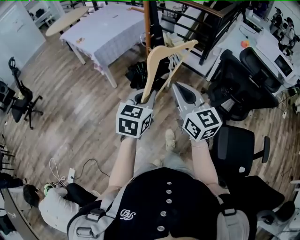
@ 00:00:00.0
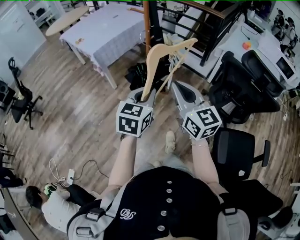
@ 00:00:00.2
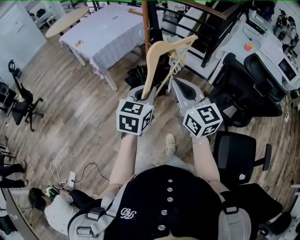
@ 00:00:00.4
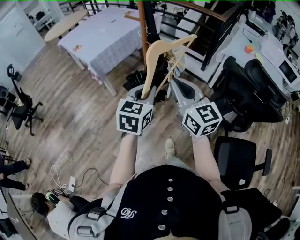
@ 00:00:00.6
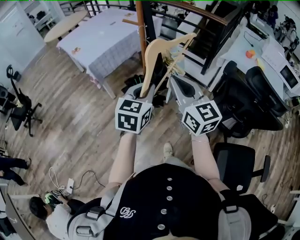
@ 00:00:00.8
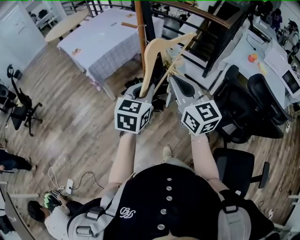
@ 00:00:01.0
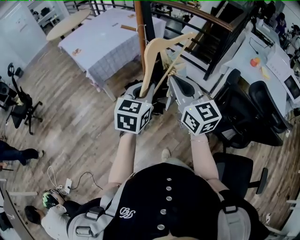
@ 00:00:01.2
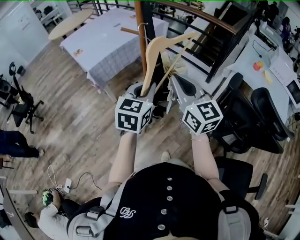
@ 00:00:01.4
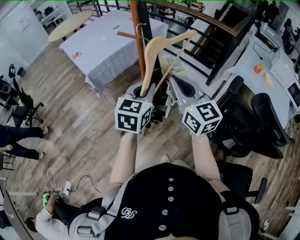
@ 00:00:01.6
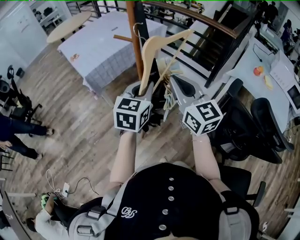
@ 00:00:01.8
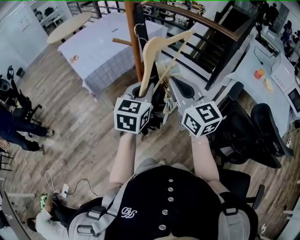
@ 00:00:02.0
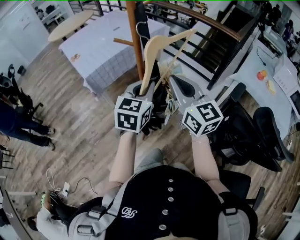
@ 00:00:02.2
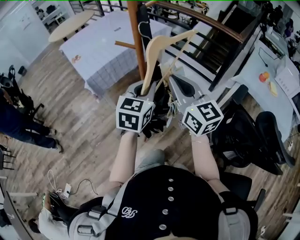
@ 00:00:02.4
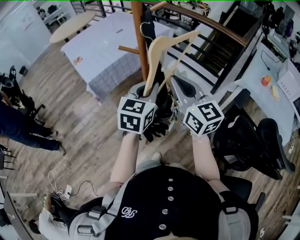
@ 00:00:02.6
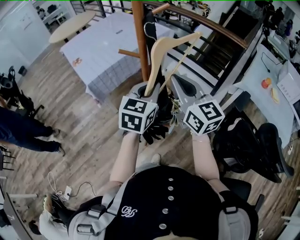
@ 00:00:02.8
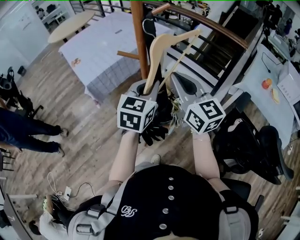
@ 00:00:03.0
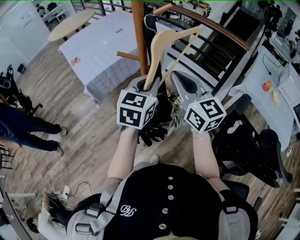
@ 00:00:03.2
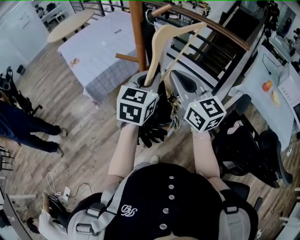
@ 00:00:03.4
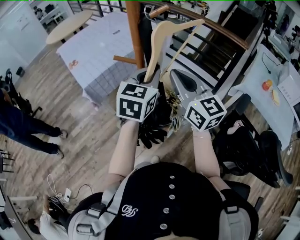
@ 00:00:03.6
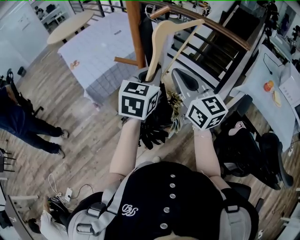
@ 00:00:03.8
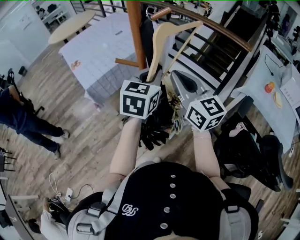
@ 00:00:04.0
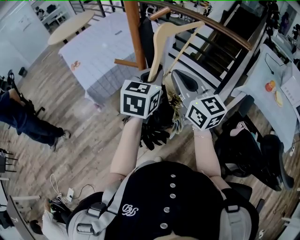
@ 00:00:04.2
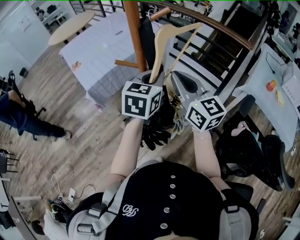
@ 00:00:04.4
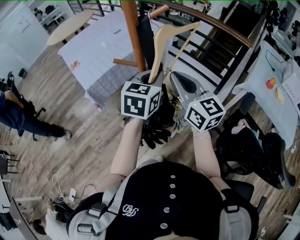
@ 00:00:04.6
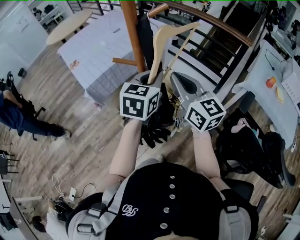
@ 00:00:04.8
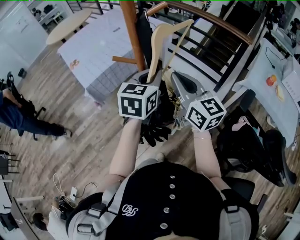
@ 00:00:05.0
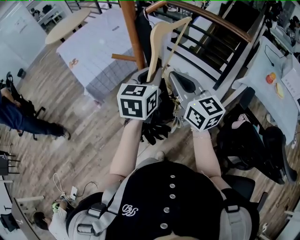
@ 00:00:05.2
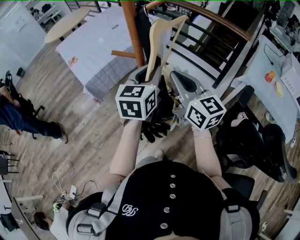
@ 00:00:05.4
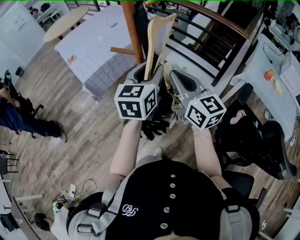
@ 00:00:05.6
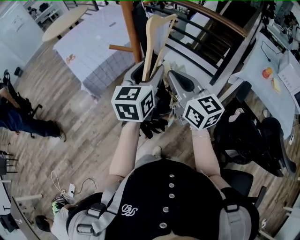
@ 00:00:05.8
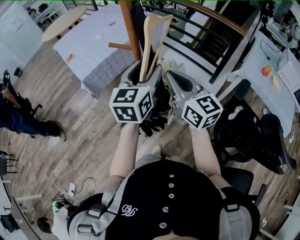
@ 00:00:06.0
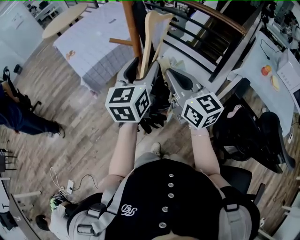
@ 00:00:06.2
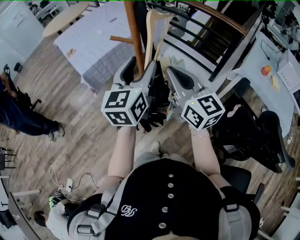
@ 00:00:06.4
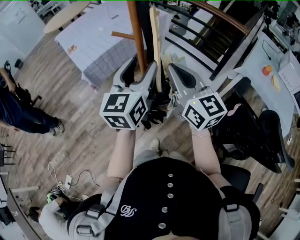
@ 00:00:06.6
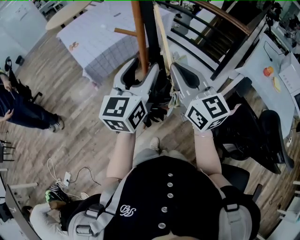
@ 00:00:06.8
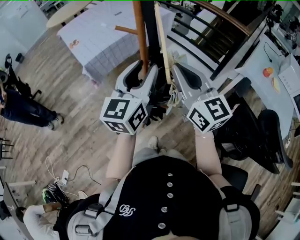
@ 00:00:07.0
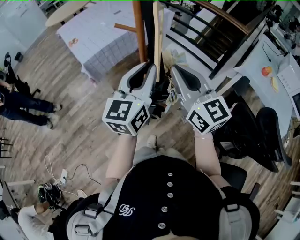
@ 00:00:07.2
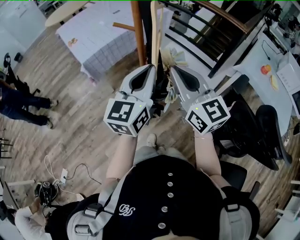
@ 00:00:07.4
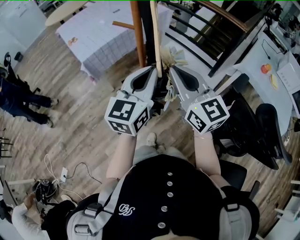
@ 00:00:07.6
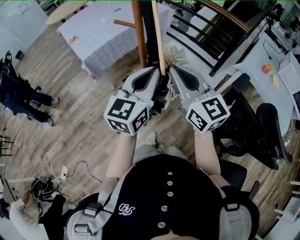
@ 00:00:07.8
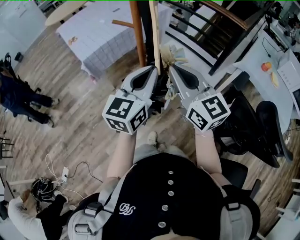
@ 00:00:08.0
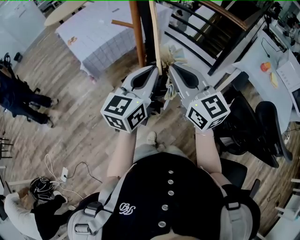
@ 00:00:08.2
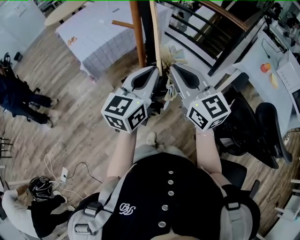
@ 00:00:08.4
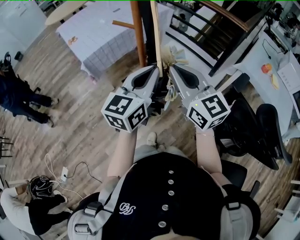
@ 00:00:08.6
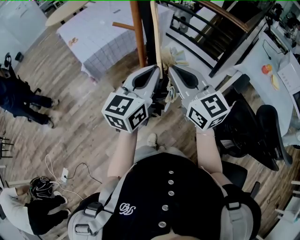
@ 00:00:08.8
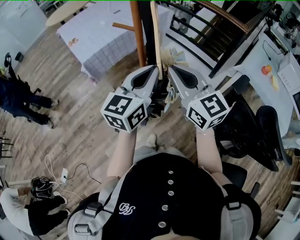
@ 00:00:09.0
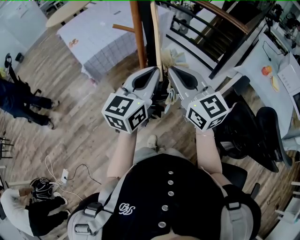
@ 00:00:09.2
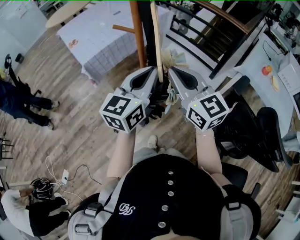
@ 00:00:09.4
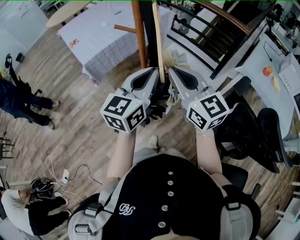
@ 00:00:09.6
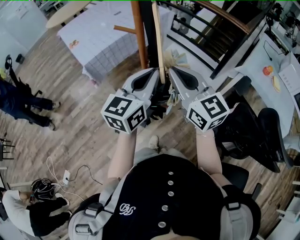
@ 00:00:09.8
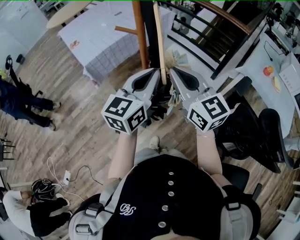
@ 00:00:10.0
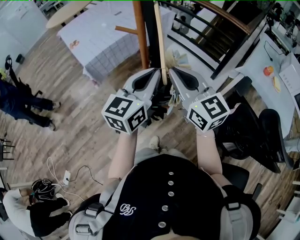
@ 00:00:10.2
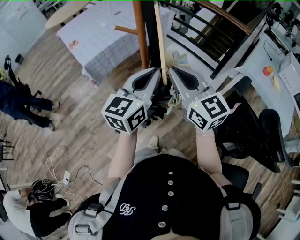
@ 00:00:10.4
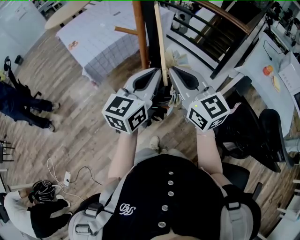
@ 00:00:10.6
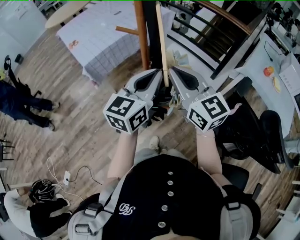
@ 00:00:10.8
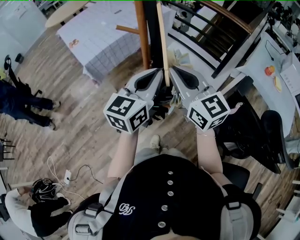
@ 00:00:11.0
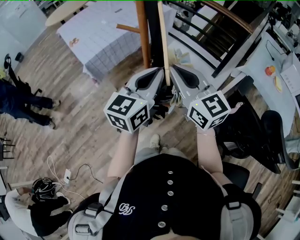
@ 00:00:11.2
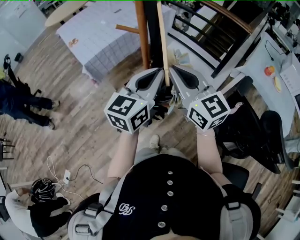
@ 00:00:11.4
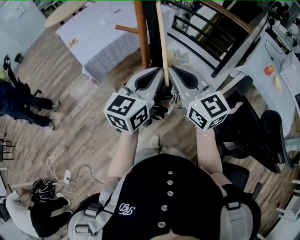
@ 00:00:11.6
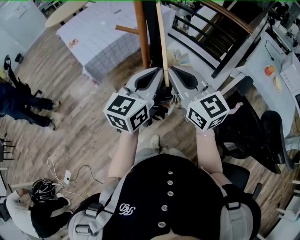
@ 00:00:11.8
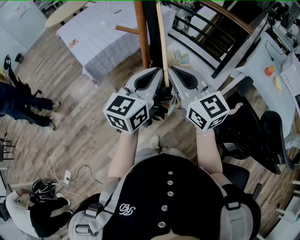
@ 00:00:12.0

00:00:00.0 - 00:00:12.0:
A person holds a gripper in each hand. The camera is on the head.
00:00:00.0 - 00:00:01.6: Both grippers move forward, about 30 cm.
00:00:01.6 - 00:00:03.0: The grippers both shift forward by some 15 cm.
00:00:03.0 - 00:00:04.4: Both grippers travel together forward, roughly 5 cm.
00:00:04.4 - 00:00:06.0: The two grippers go about 5 cm backward. The left gripper opens its fingers.
00:00:06.0 - 00:00:07.6: Both grippers move backward, some 10 cm. The left gripper closes its fingers.
00:00:07.6 - 00:00:10.4: The grippers make only small movements.
00:00:10.4 - 00:00:12.0: Both grippers stay about where they are.

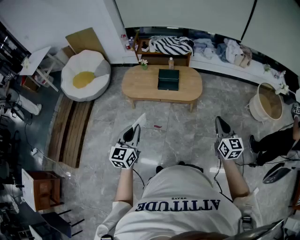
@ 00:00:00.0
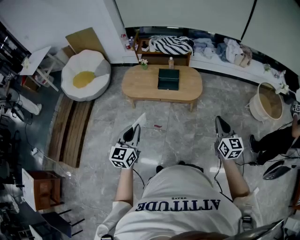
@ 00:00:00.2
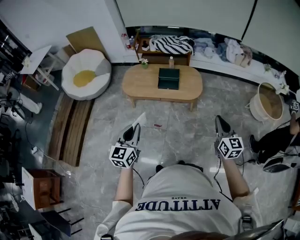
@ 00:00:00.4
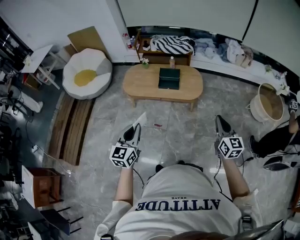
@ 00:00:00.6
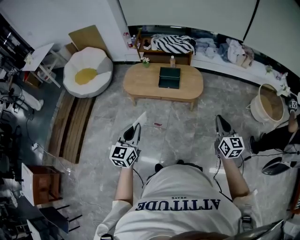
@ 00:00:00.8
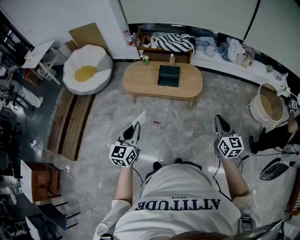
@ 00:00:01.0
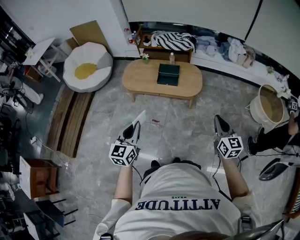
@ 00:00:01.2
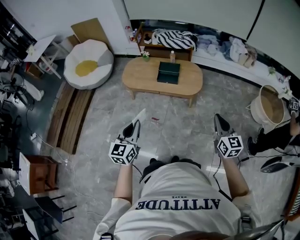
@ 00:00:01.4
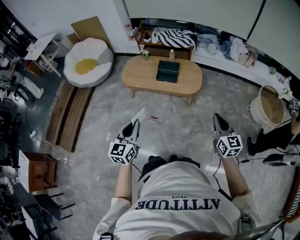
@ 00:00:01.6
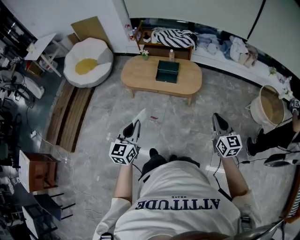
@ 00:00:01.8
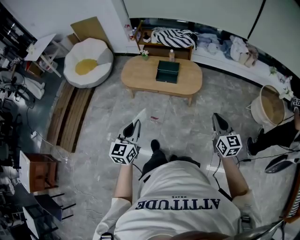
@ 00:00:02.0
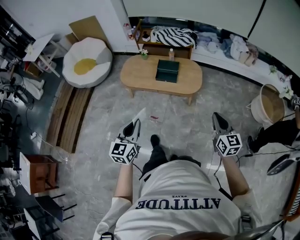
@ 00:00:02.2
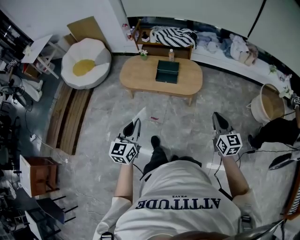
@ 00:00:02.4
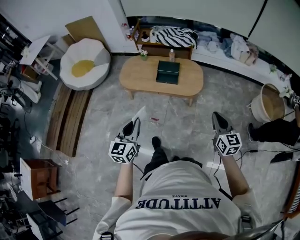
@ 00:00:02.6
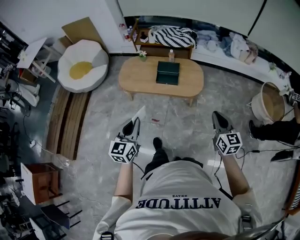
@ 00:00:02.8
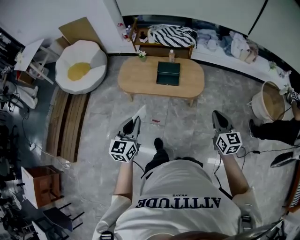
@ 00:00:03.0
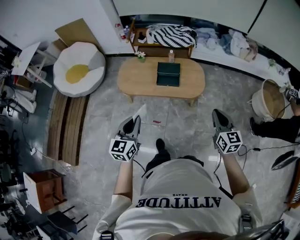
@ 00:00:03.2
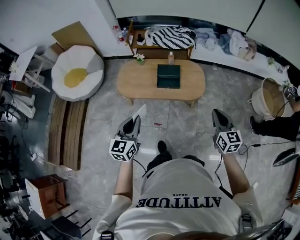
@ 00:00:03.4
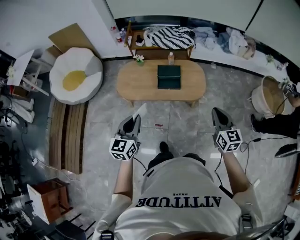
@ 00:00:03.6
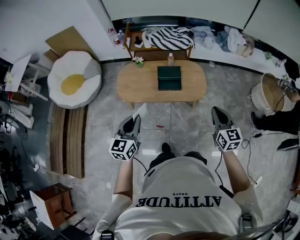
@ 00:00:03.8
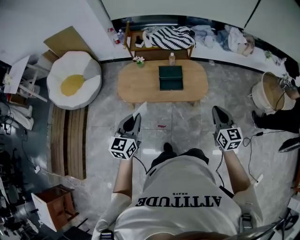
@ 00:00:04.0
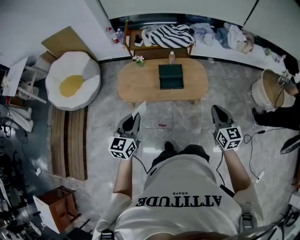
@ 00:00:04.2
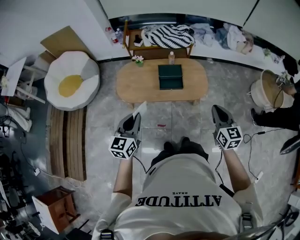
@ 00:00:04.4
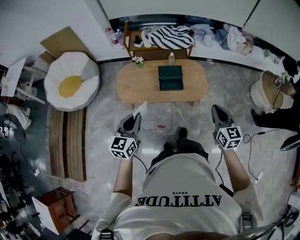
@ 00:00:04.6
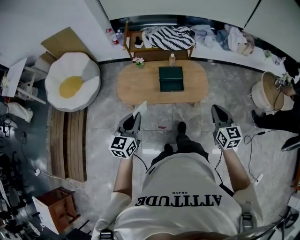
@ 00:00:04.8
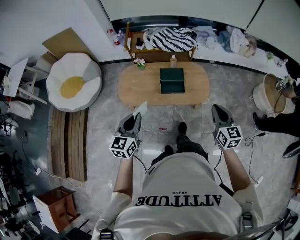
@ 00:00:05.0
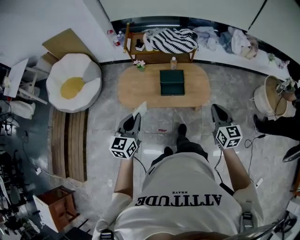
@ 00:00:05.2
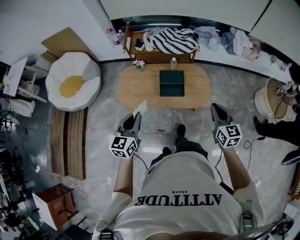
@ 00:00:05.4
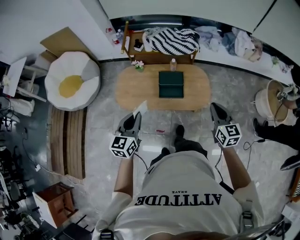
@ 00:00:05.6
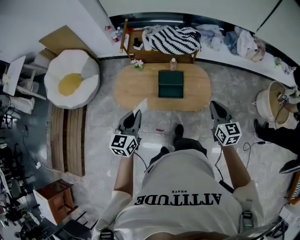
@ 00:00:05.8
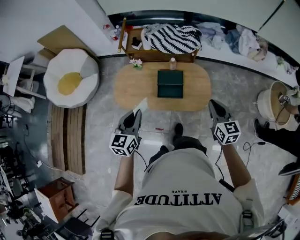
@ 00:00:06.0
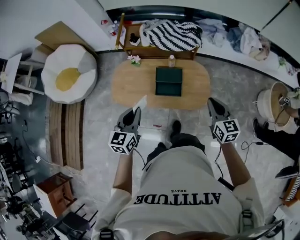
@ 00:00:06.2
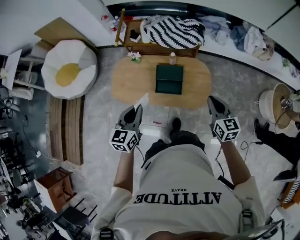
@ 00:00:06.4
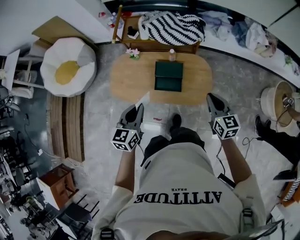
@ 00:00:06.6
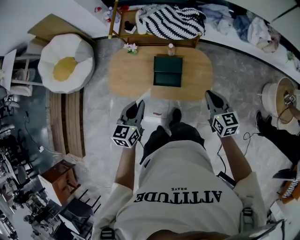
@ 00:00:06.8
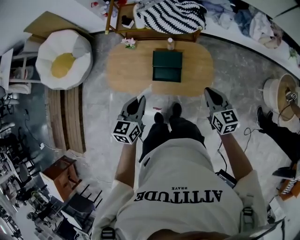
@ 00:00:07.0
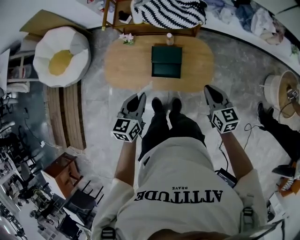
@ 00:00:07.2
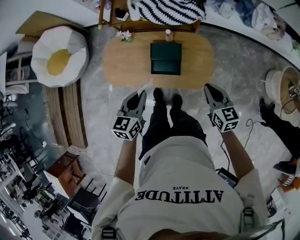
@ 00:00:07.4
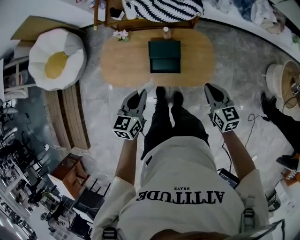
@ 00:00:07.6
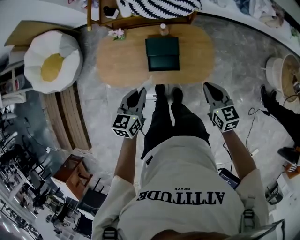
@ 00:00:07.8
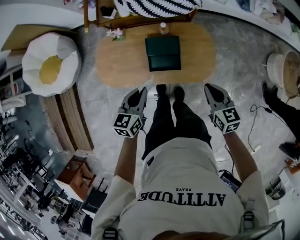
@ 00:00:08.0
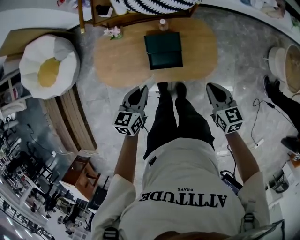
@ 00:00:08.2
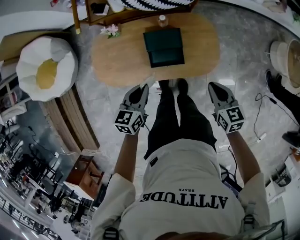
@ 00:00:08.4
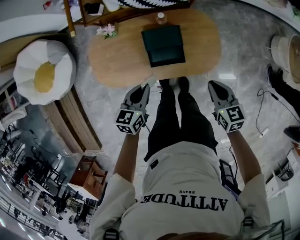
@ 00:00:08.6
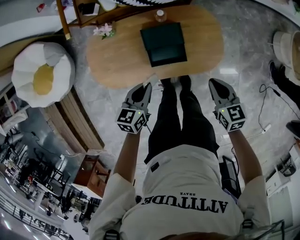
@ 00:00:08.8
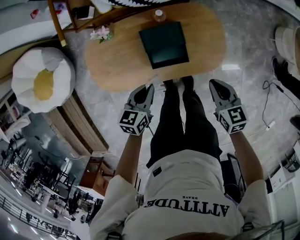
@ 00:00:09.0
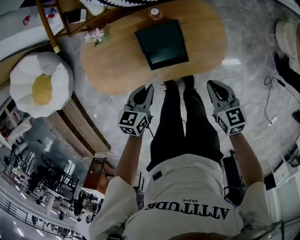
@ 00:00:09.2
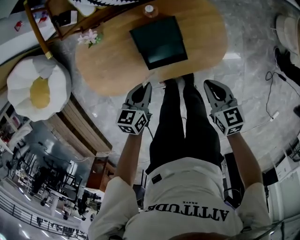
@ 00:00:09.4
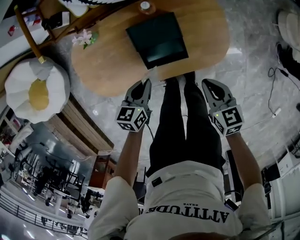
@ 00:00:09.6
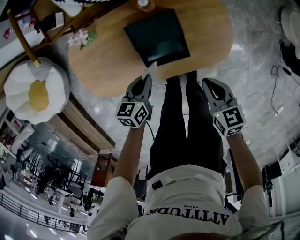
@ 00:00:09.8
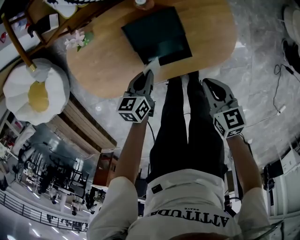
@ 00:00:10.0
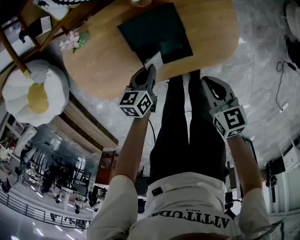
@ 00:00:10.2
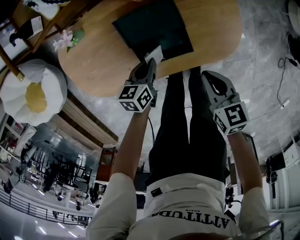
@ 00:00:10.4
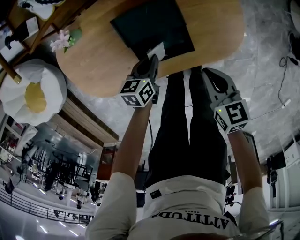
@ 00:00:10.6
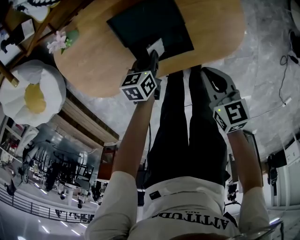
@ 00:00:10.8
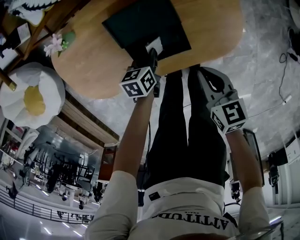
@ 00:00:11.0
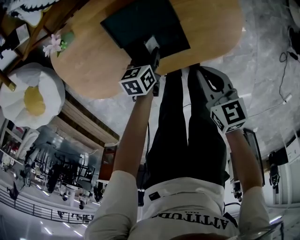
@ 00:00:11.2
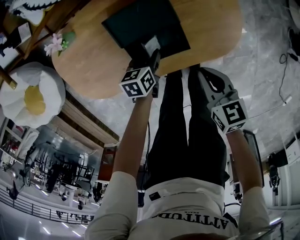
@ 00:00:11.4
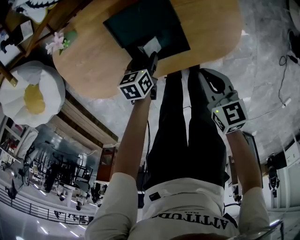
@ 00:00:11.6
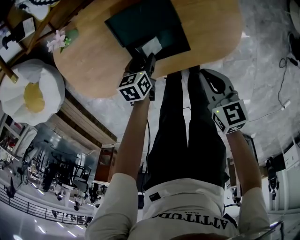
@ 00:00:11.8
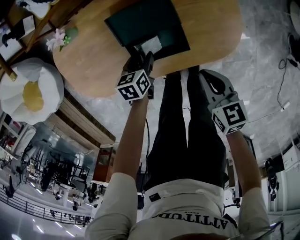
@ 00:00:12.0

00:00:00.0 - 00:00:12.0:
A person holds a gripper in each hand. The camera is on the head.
00:00:00.0 - 00:00:01.6: The grippers both shift to the right by some 5 cm.
00:00:01.6 - 00:00:03.0: The right gripper heads forward and to the left, covering approximately 15 cm. Meanwhile the left gripper is displaced forward by about 15 cm.
00:00:03.0 - 00:00:04.4: The right gripper moves to the left and forward, about 15 cm. Meanwhile the left gripper goes approximately 20 cm forward and to the left.
00:00:04.4 - 00:00:06.0: The left gripper moves forward and to the right, roughly 20 cm; the right gripper heads forward, covering some 20 cm.
00:00:06.0 - 00:00:07.6: The right gripper shifts some 15 cm downward and forward, while the left gripper is displaced forward, downward and to the right by about 20 cm.
00:00:07.6 - 00:00:09.0: Both grippers travel together downward, some 15 cm. The left gripper rotates approximately 20 degrees.
00:00:09.0 - 00:00:10.4: Both grippers move downward, roughly 20 cm.
00:00:10.4 - 00:00:12.0: The left gripper goes about 5 cm downward, and opens its fingers.
